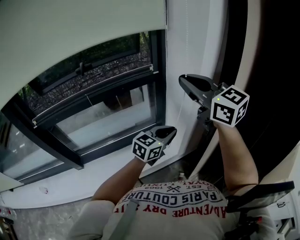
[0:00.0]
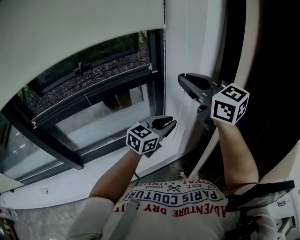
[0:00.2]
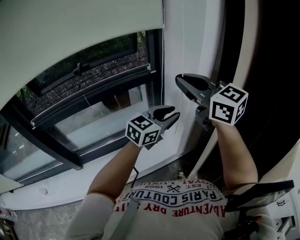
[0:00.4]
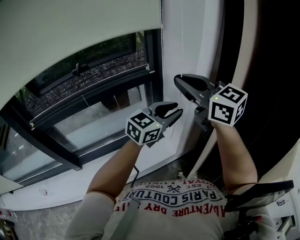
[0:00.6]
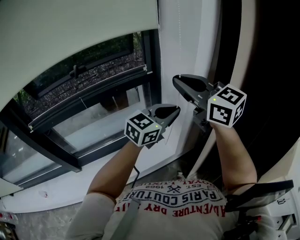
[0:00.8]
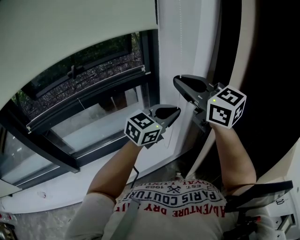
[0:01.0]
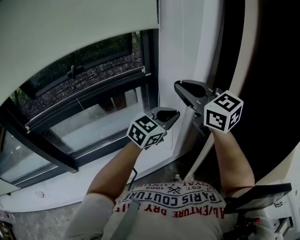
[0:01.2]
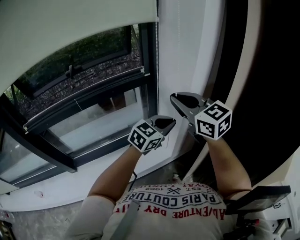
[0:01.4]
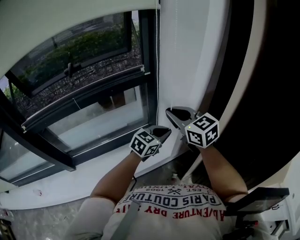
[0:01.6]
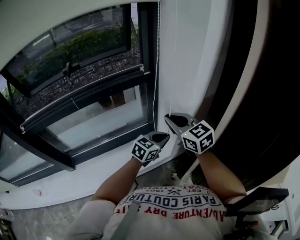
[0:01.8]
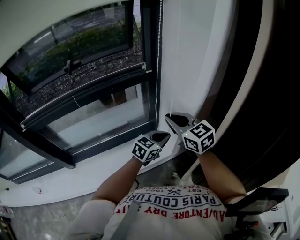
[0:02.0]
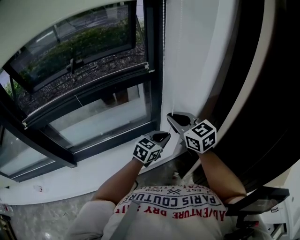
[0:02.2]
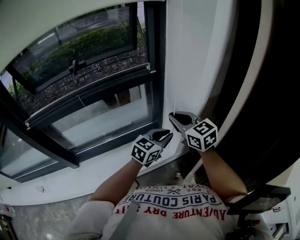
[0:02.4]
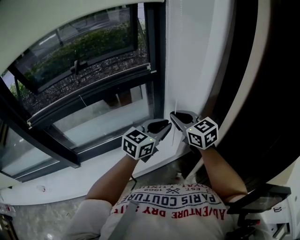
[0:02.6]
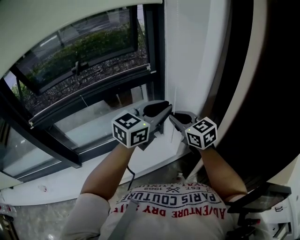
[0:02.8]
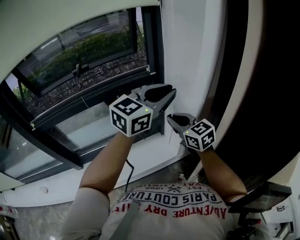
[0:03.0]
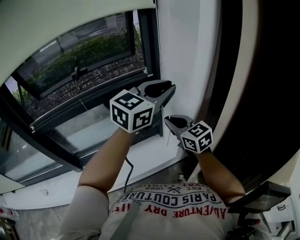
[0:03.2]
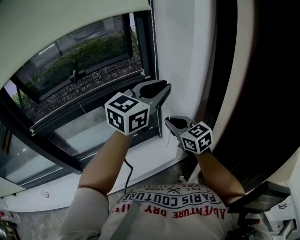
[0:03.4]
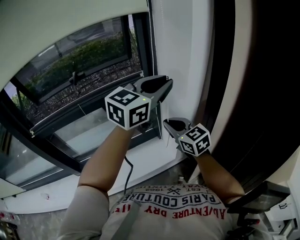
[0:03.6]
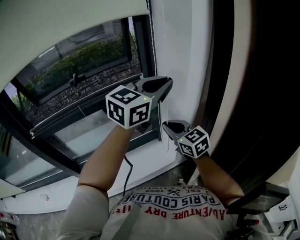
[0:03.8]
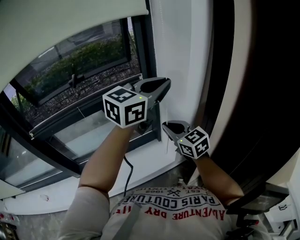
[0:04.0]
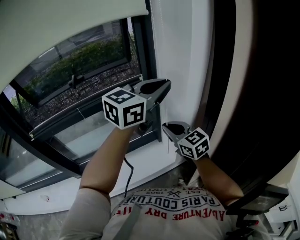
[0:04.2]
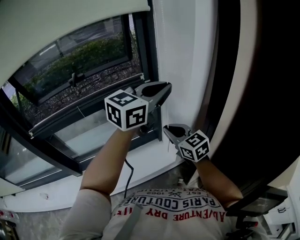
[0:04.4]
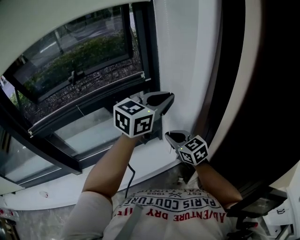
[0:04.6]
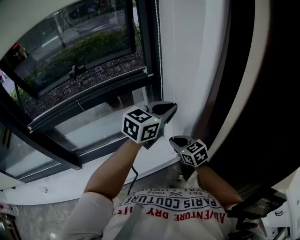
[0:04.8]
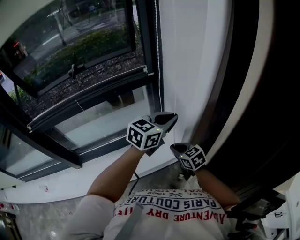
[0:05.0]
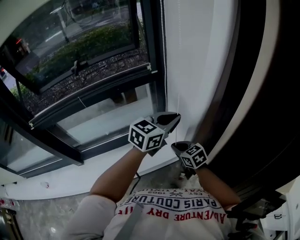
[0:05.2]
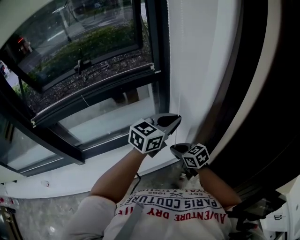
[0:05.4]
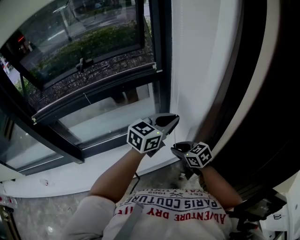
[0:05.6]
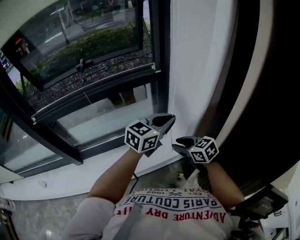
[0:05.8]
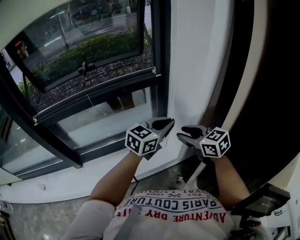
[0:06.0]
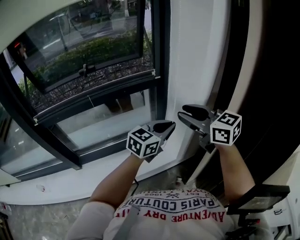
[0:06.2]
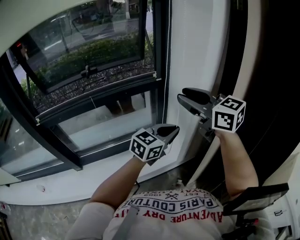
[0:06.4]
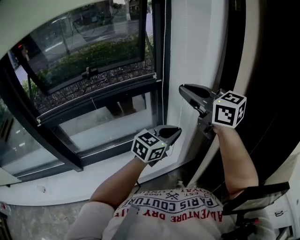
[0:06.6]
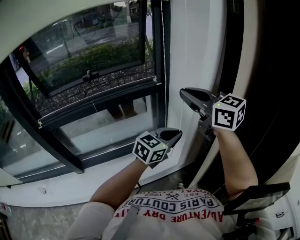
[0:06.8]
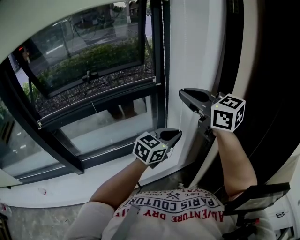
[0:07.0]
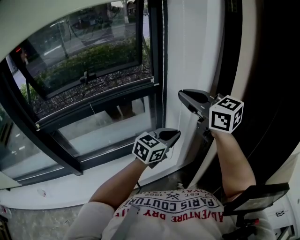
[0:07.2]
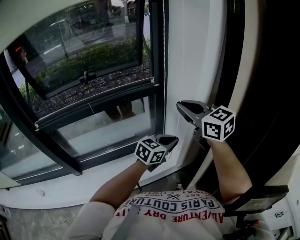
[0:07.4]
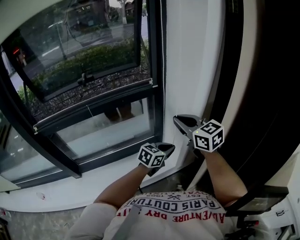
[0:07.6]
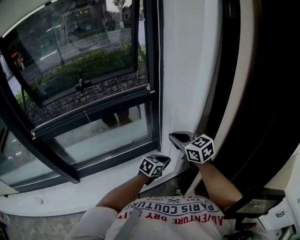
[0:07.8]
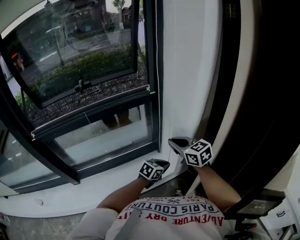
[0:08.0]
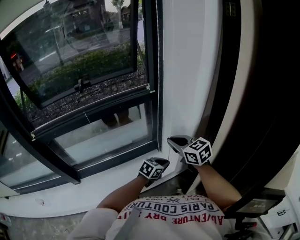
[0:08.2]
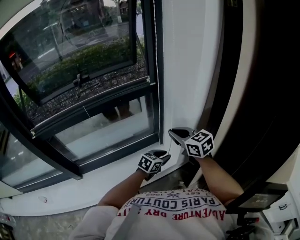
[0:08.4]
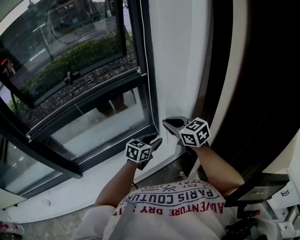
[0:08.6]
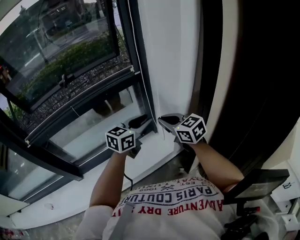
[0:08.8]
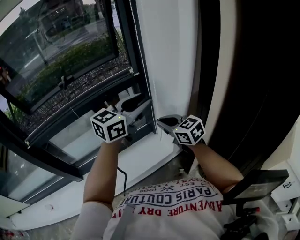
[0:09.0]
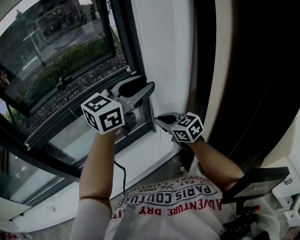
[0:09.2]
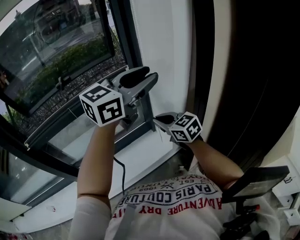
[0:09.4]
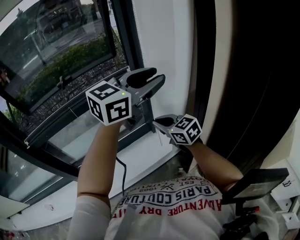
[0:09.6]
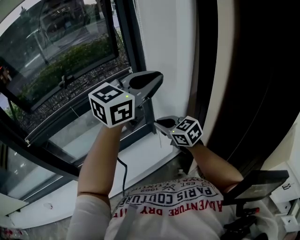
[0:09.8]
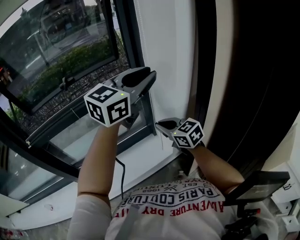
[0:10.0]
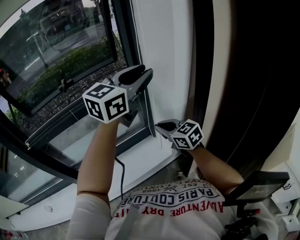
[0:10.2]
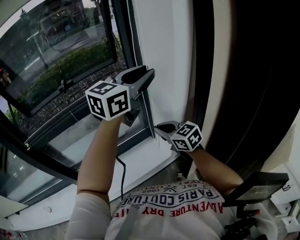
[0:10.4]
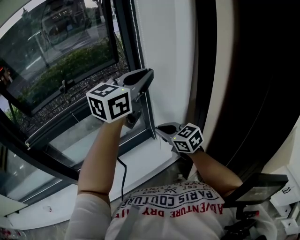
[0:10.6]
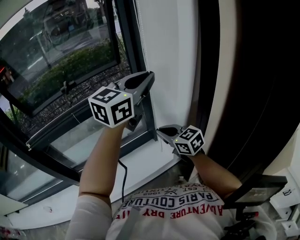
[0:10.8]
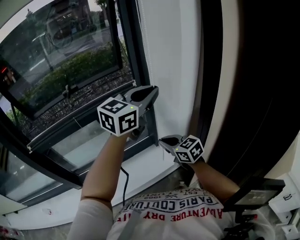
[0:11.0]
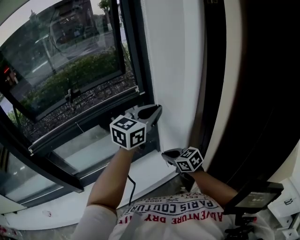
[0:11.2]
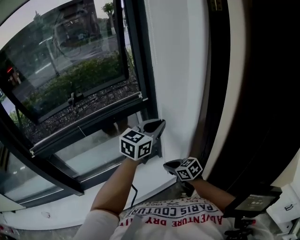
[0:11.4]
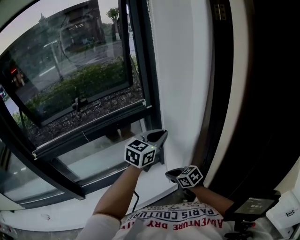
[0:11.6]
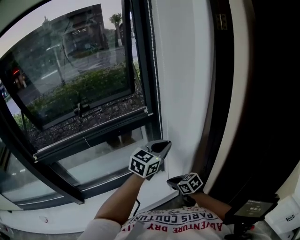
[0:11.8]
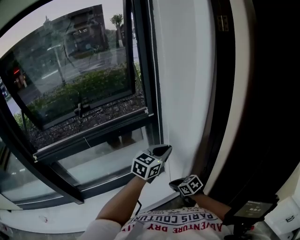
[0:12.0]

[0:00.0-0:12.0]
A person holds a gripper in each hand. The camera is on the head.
0:00.0 to 0:01.6: The right gripper is displaced downward by roughly 15 cm, while the left gripper travels forward by about 5 cm, and moves some 10 cm upward and comes back.
0:01.6 to 0:03.0: The left gripper moves upward, approximately 25 cm, and swivels some 20 degrees.
0:03.0 to 0:04.4: The grippers make only small movements.
0:04.4 to 0:06.0: The right gripper is displaced backward by some 5 cm, goes downward and returns, roughly 20 cm each way, and opens; the left gripper goes some 15 cm downward.
0:06.0 to 0:07.6: The left gripper shifts some 15 cm downward. Meanwhile the right gripper goes roughly 10 cm upward, and closes its fingers.
0:07.6 to 0:09.0: The left gripper heads upward, covering approximately 25 cm, changes its angle by roughly 20 degrees, and opens up; the right gripper moves downward, some 10 cm.
0:09.0 to 0:10.4: The left gripper goes about 10 cm upward.
0:10.4 to 0:12.0: Both grippers move downward, about 20 cm. The right gripper swivels approximately 30 degrees. The left gripper closes.

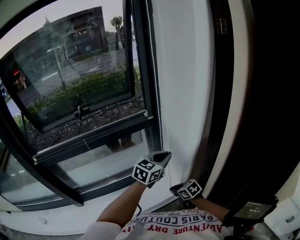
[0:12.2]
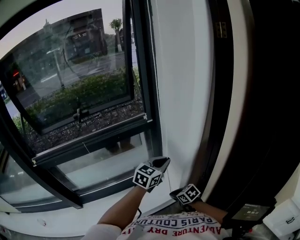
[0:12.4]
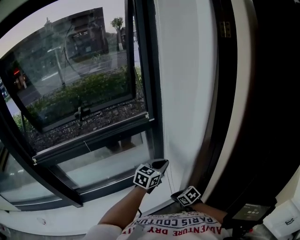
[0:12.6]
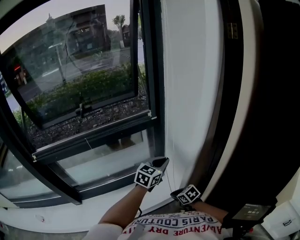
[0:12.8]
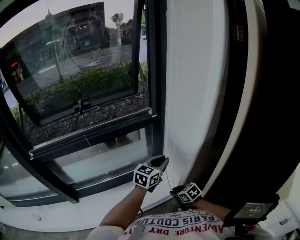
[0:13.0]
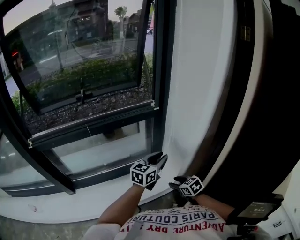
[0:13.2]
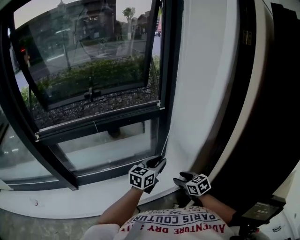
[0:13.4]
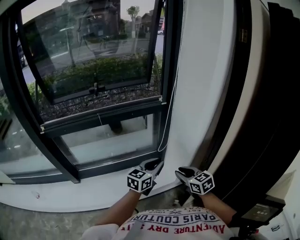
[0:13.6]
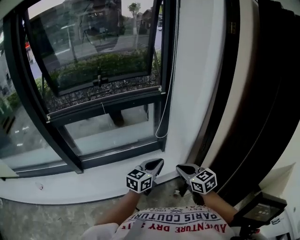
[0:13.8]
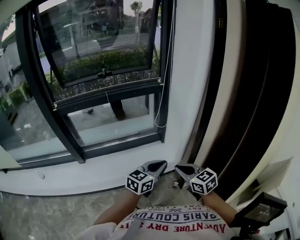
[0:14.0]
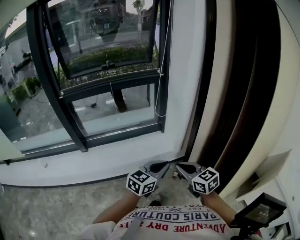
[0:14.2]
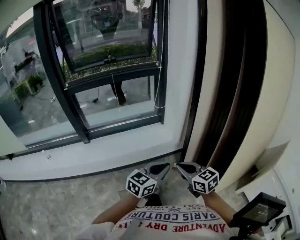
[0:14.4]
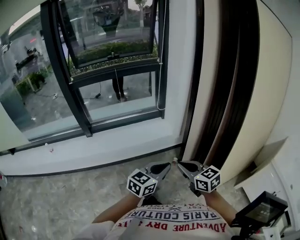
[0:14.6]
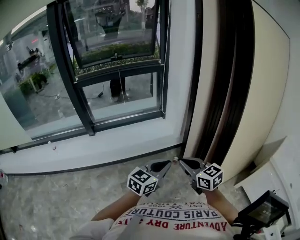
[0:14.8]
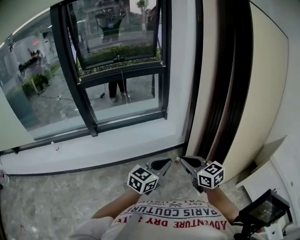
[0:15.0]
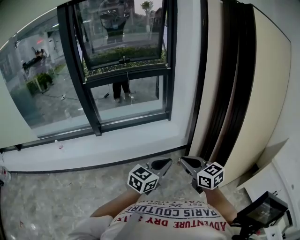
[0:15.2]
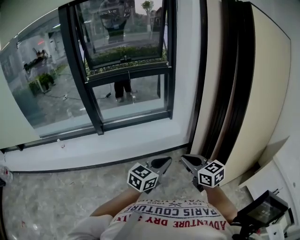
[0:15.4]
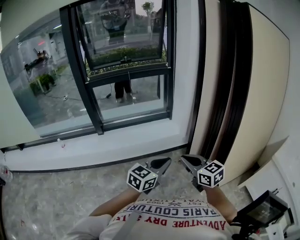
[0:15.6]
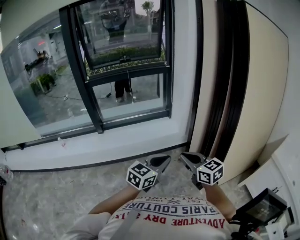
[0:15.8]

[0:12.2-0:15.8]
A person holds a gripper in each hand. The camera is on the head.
0:12.2 to 0:14.0: The left gripper goes about 30 cm backward, and opens, then closes again; the right gripper shifts roughly 30 cm backward and upward, swivels some 20 degrees, and opens, then closes once more.
0:14.0 to 0:15.8: The two grippers go some 35 cm backward.

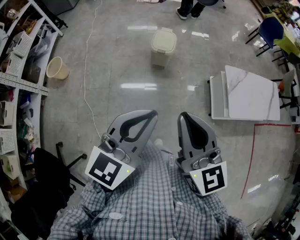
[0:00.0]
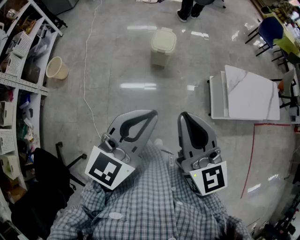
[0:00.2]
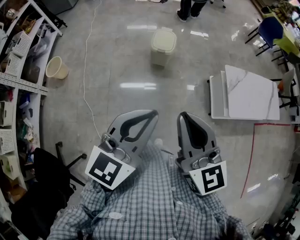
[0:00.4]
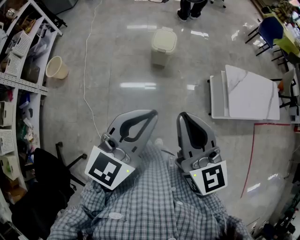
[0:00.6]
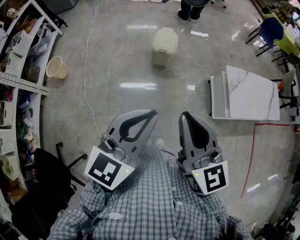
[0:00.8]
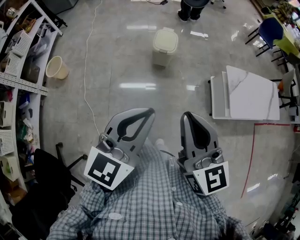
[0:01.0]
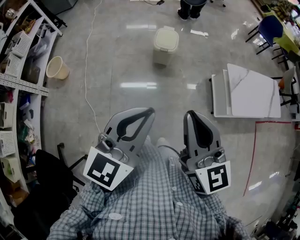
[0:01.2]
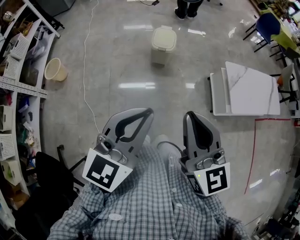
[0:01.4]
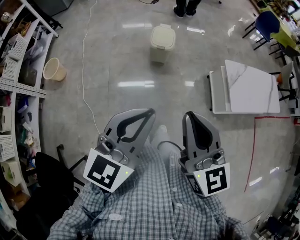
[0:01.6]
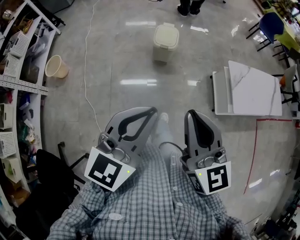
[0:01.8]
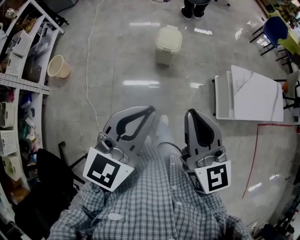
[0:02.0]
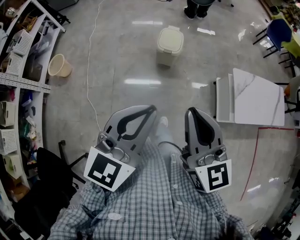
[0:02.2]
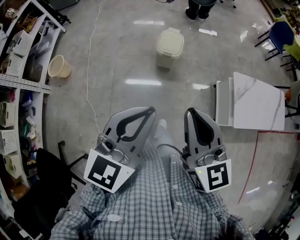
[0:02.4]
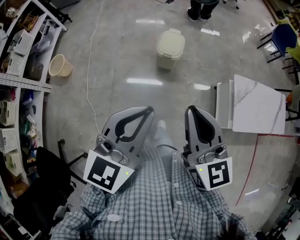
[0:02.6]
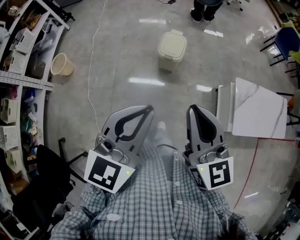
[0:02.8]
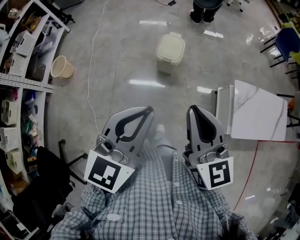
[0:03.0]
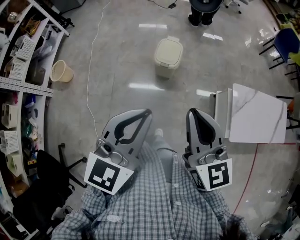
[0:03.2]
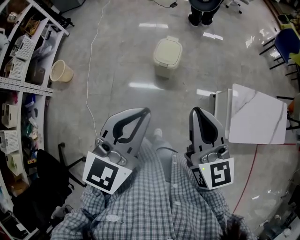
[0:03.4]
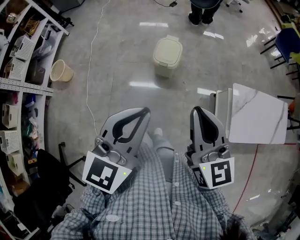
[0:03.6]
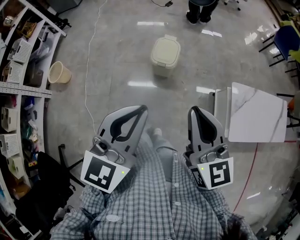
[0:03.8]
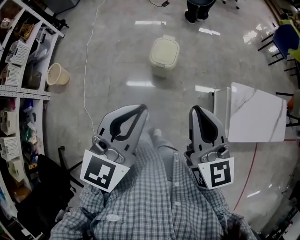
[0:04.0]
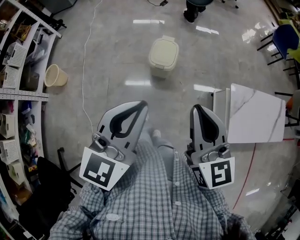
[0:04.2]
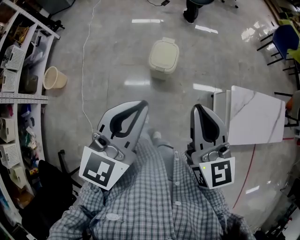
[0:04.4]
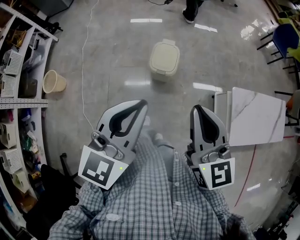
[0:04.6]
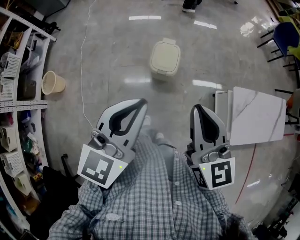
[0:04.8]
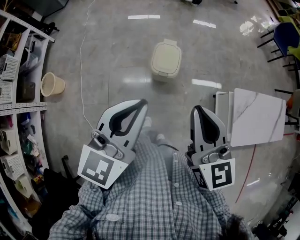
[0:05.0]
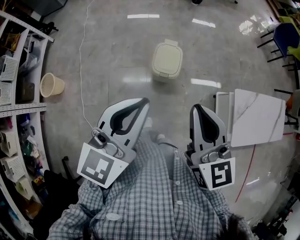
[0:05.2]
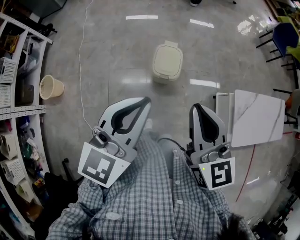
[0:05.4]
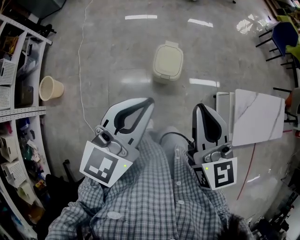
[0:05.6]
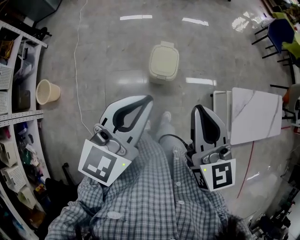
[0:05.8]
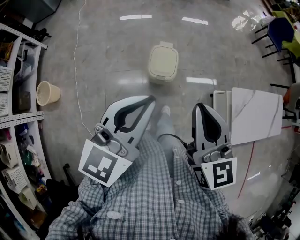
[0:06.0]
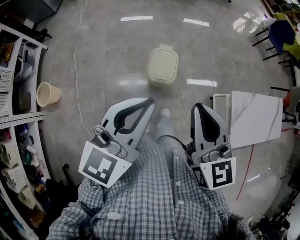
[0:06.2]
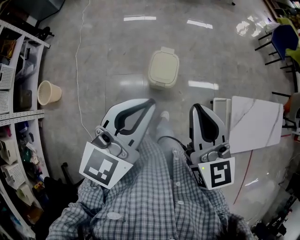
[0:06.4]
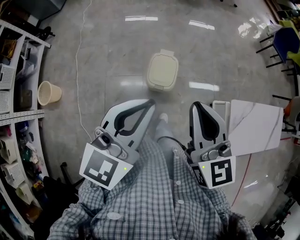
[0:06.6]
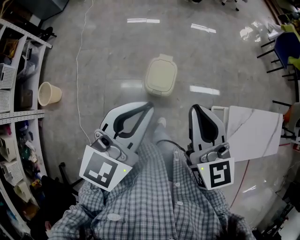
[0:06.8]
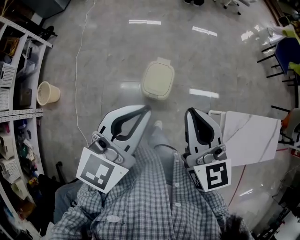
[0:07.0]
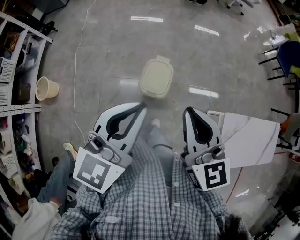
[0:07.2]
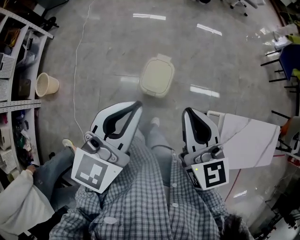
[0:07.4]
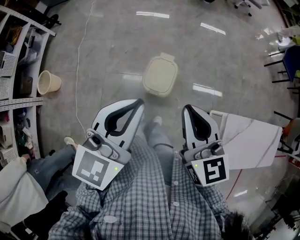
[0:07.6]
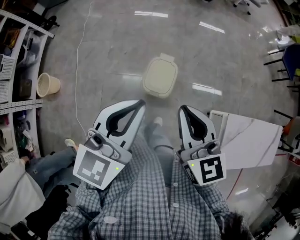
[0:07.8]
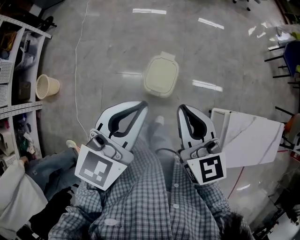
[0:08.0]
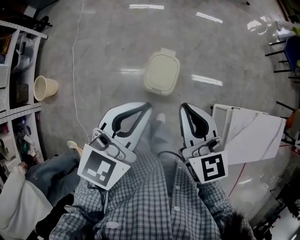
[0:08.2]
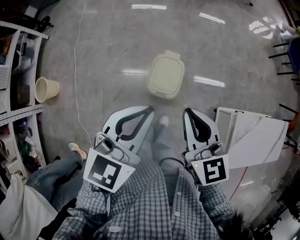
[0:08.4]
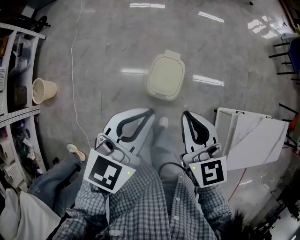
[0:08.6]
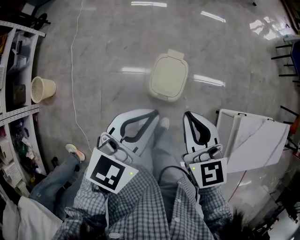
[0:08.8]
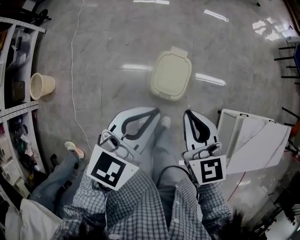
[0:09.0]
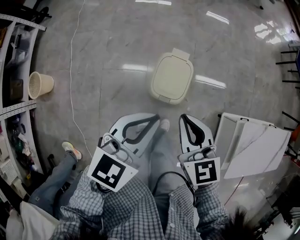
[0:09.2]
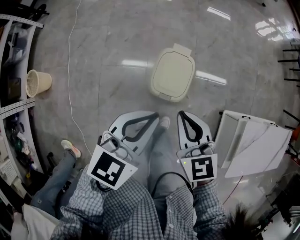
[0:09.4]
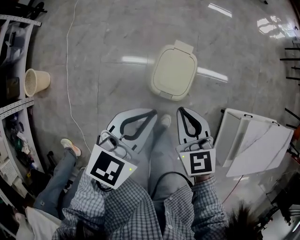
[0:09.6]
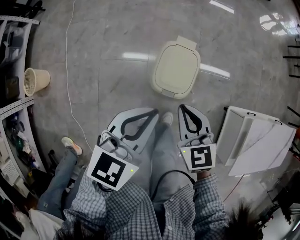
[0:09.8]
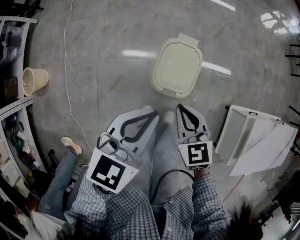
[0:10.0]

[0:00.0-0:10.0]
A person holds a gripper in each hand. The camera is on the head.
0:00.0 to 0:01.4: The grippers move only a little.
0:01.4 to 0:02.8: Both grippers move forward, some 15 cm.
0:02.8 to 0:04.2: The grippers both shift forward by approximately 10 cm.
0:04.2 to 0:05.8: Both grippers move forward and to the left, about 15 cm.
0:05.8 to 0:07.2: The grippers both shift forward and to the right by about 15 cm.
0:07.2 to 0:08.6: The right gripper travels downward by some 15 cm; the left gripper shifts some 15 cm downward and forward.
0:08.6 to 0:10.0: The grippers both shift downward by some 20 cm.
